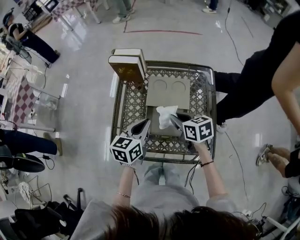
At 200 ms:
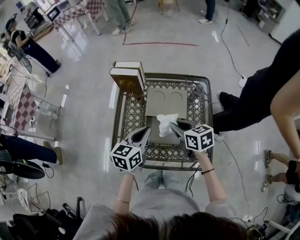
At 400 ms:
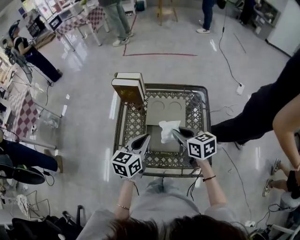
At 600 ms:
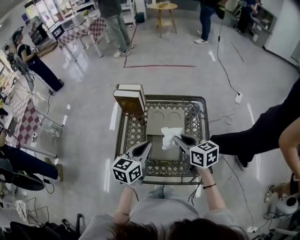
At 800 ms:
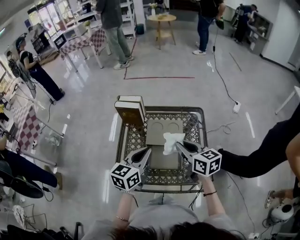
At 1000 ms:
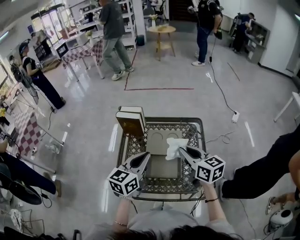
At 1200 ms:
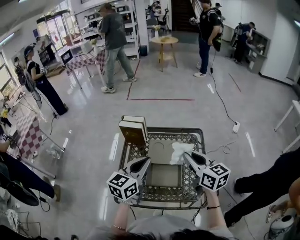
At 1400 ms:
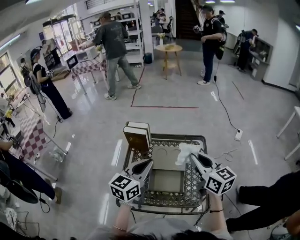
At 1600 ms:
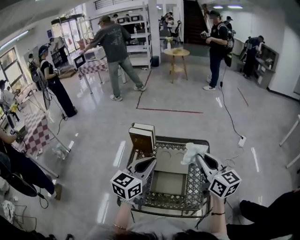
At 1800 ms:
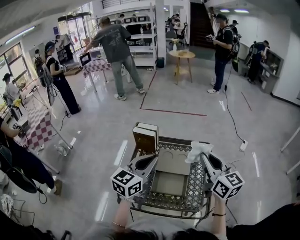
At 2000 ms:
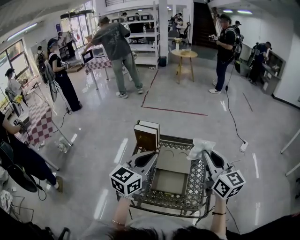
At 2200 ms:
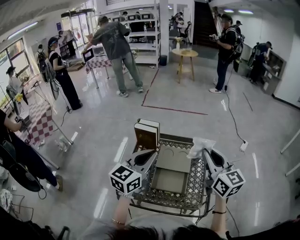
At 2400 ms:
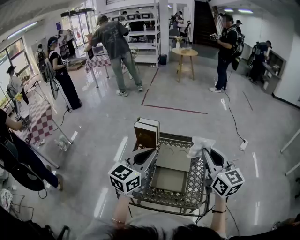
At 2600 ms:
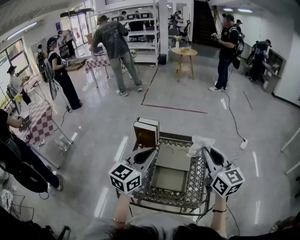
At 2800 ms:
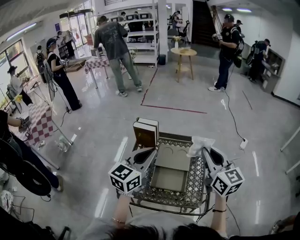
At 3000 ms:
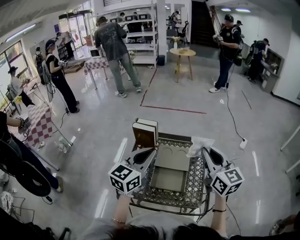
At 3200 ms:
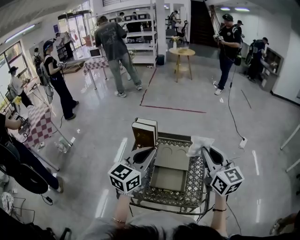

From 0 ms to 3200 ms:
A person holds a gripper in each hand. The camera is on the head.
From 0 ms to 1600 ms: The two grippers go approximately 25 cm upward. The right gripper angles its fingers upward, by some 30 degrees, while the left gripper turns by about 30 degrees.
From 1600 ms to 3200 ms: The grippers stay close to where they were, moving slightly.

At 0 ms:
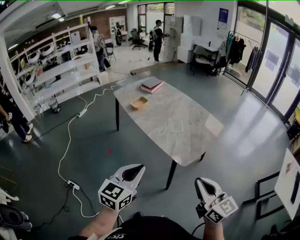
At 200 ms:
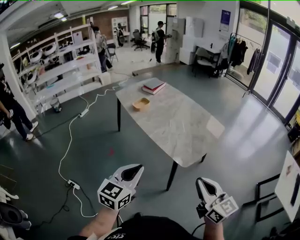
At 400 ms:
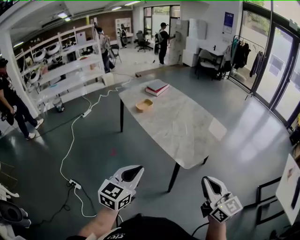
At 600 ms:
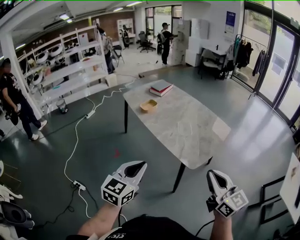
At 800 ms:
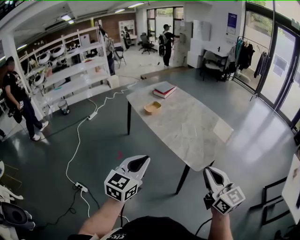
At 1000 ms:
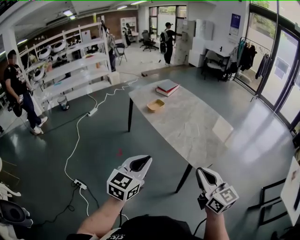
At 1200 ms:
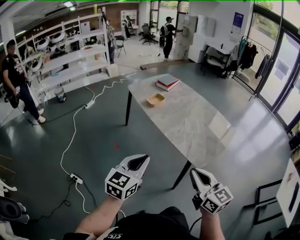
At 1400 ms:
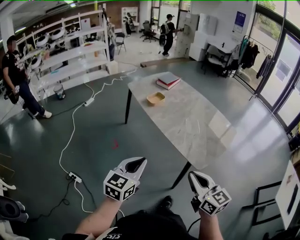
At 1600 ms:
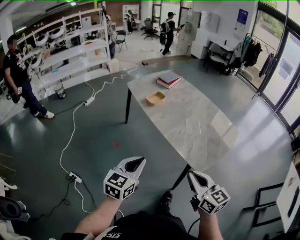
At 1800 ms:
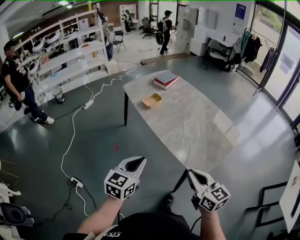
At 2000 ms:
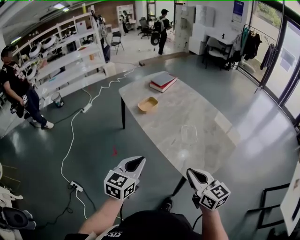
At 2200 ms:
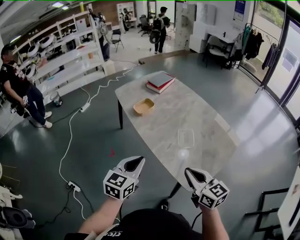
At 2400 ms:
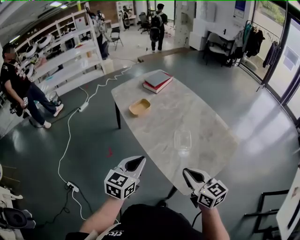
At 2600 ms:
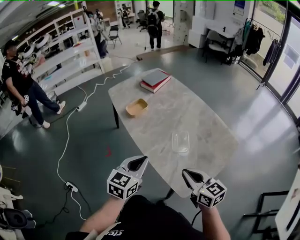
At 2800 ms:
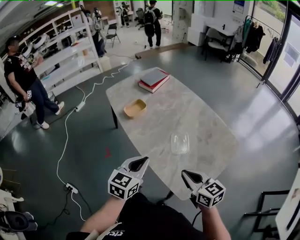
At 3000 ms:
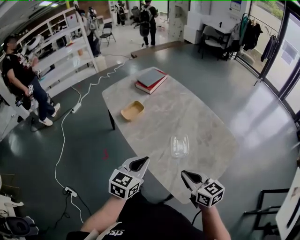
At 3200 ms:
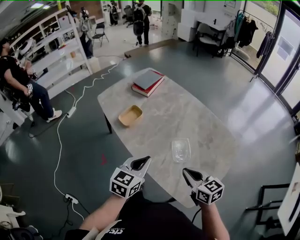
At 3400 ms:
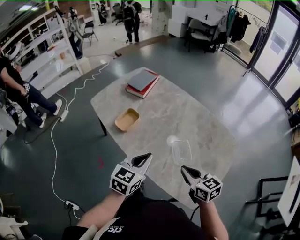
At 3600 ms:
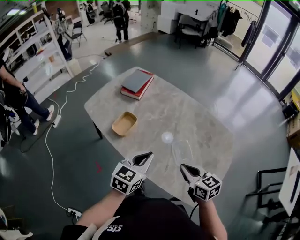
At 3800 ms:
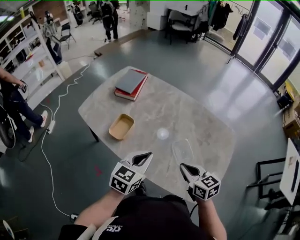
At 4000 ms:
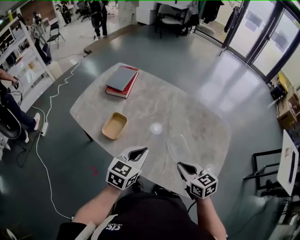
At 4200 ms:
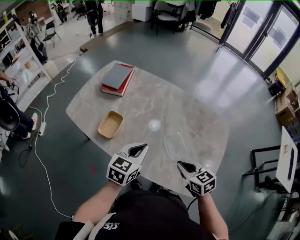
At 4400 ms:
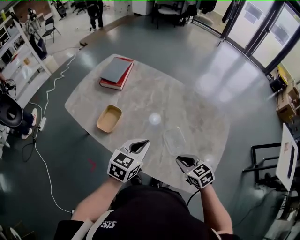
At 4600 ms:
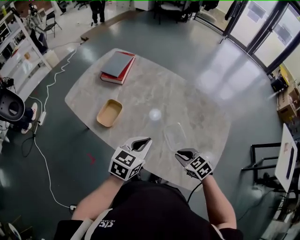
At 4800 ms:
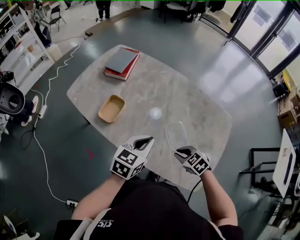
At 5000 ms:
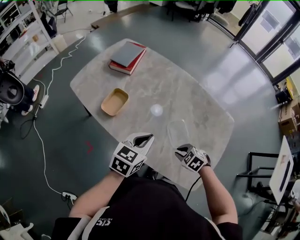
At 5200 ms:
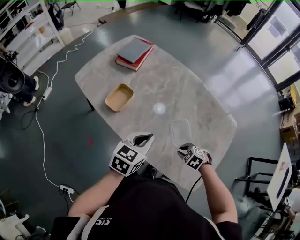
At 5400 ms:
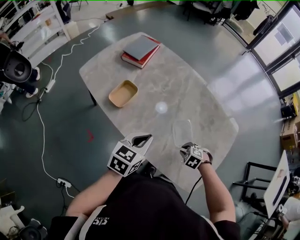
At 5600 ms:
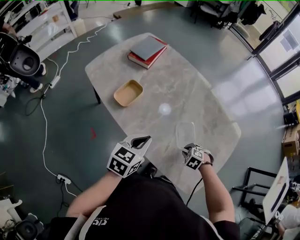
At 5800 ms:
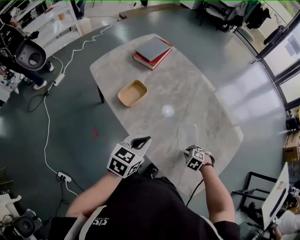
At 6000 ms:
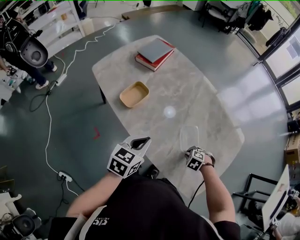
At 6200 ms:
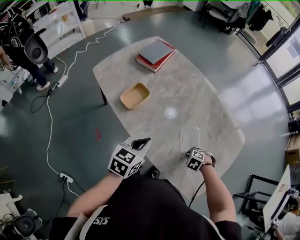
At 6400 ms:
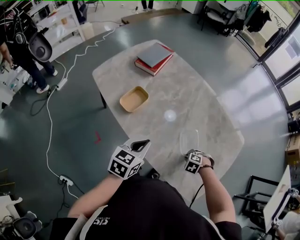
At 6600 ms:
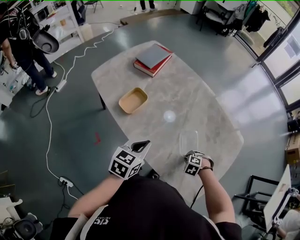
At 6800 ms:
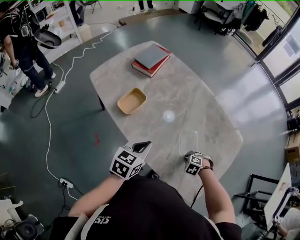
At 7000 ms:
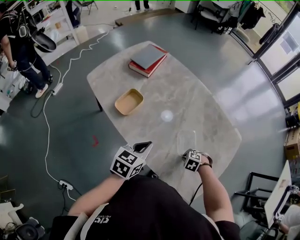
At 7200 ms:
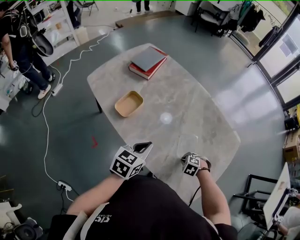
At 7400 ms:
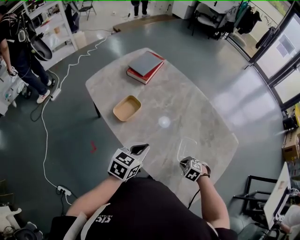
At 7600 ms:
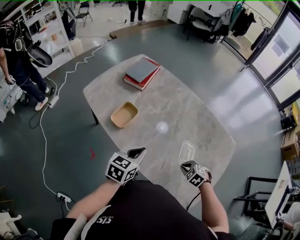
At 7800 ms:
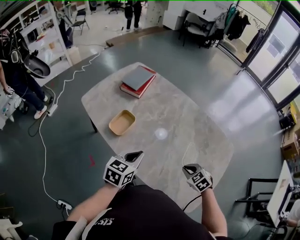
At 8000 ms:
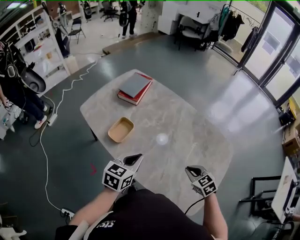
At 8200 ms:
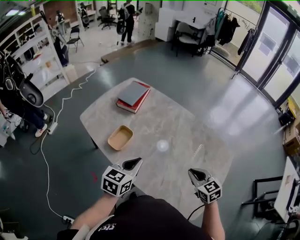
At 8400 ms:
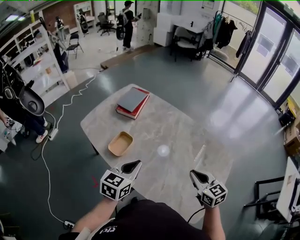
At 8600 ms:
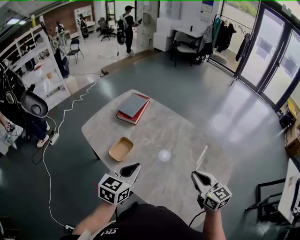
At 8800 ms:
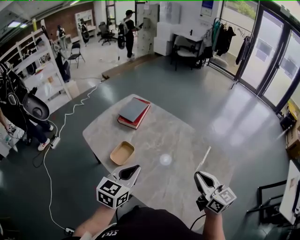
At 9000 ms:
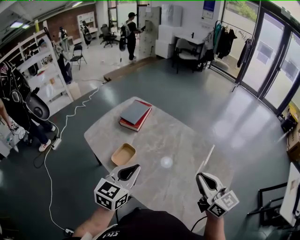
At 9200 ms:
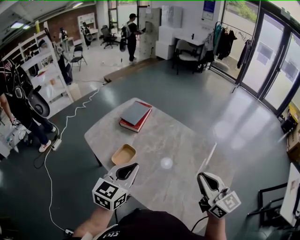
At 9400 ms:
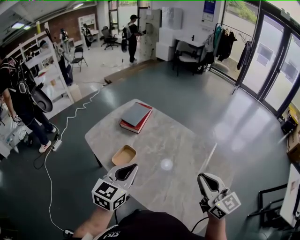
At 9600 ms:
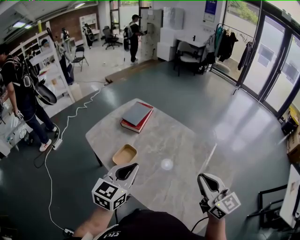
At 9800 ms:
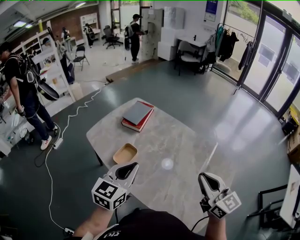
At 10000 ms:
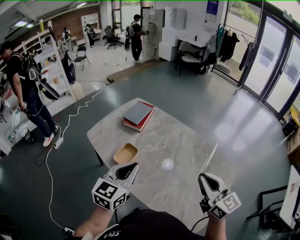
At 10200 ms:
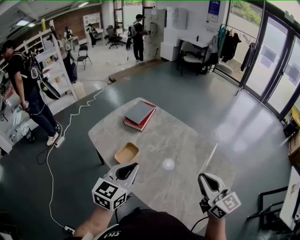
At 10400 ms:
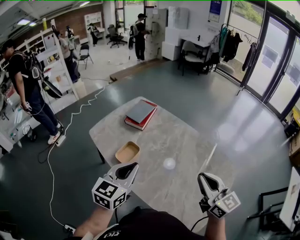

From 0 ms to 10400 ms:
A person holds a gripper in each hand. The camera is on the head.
From 0 ms to 1400 ms: The grippers both shift to the left, forward and downward by roughly 15 cm.
From 1400 ms to 3000 ms: Both grippers travel together forward and to the right, about 35 cm.
From 3000 ms to 4400 ms: The right gripper heads forward, downward and to the left, covering about 15 cm, and rotates some 30 degrees. Meanwhile the left gripper heads forward, covering some 15 cm, and changes its angle by some 30 degrees.
From 4400 ms to 6000 ms: The right gripper moves downward, about 20 cm, and tips its fingers downward by approximately 40 degrees; the left gripper changes place by about 10 cm.
From 6000 ms to 7400 ms: The grippers move only a little.
From 7400 ms to 9000 ms: The left gripper travels upward by about 15 cm, and changes its angle by some 20 degrees; the right gripper travels upward by roughly 40 cm, and points its fingers approximately 80 degrees further upward.
From 9000 ms to 10400 ms: The grippers stay close to where they were, moving slightly.

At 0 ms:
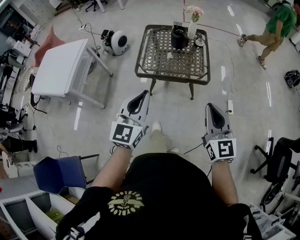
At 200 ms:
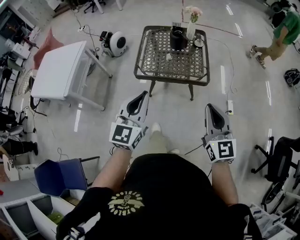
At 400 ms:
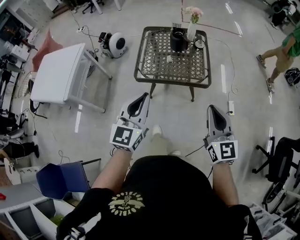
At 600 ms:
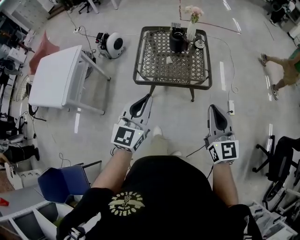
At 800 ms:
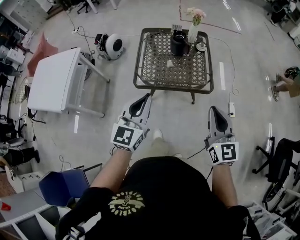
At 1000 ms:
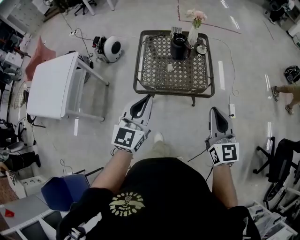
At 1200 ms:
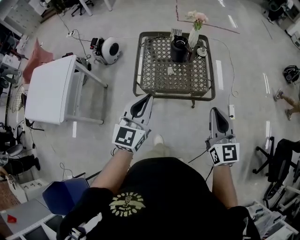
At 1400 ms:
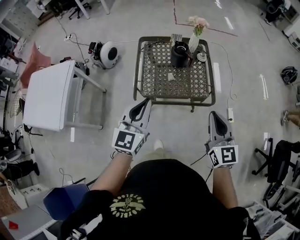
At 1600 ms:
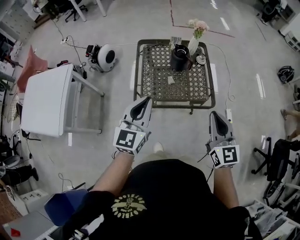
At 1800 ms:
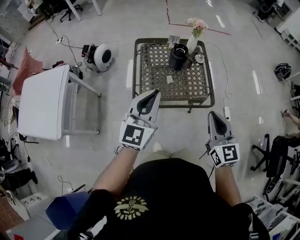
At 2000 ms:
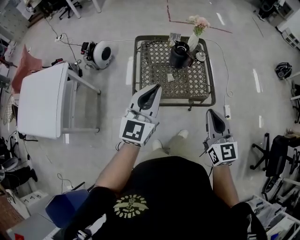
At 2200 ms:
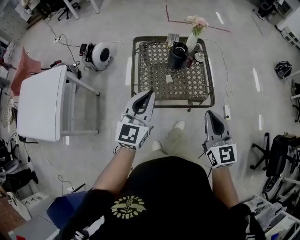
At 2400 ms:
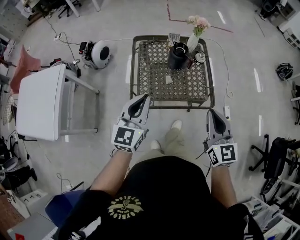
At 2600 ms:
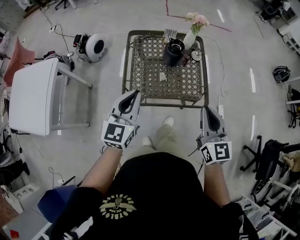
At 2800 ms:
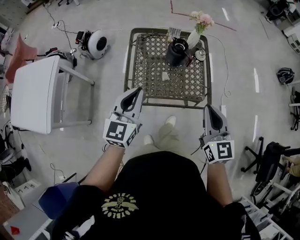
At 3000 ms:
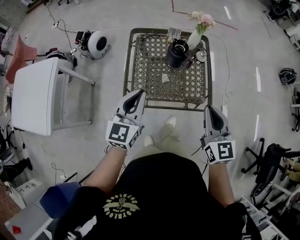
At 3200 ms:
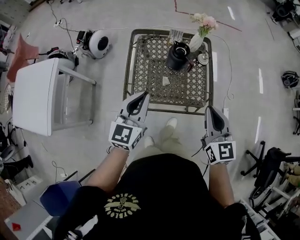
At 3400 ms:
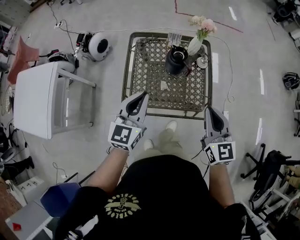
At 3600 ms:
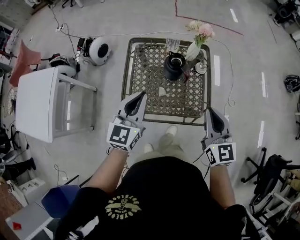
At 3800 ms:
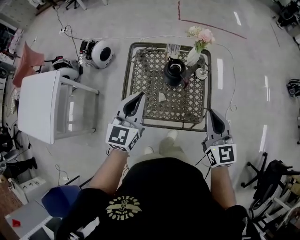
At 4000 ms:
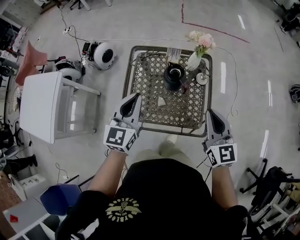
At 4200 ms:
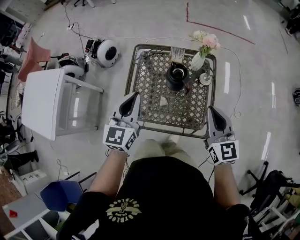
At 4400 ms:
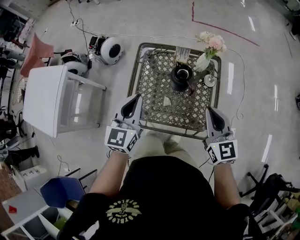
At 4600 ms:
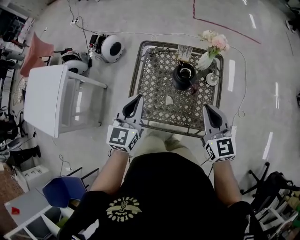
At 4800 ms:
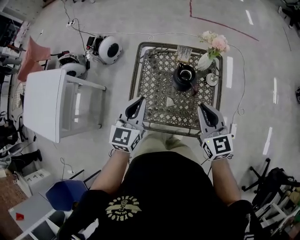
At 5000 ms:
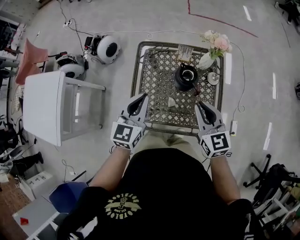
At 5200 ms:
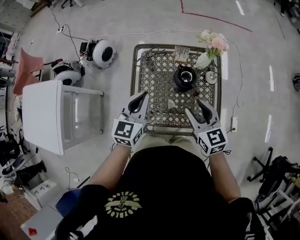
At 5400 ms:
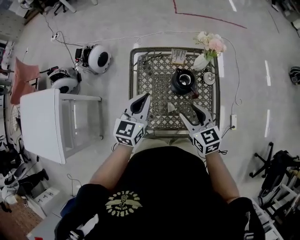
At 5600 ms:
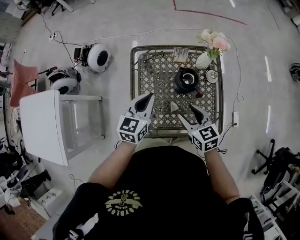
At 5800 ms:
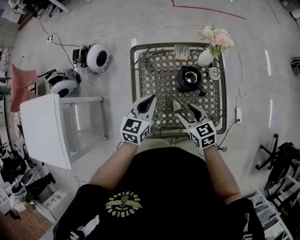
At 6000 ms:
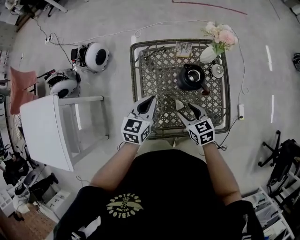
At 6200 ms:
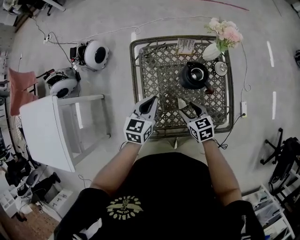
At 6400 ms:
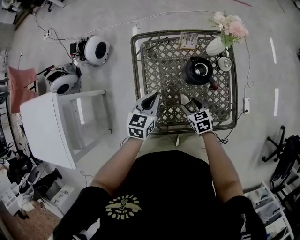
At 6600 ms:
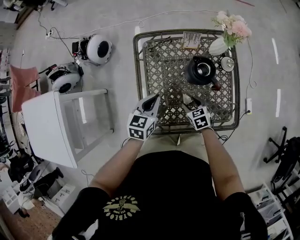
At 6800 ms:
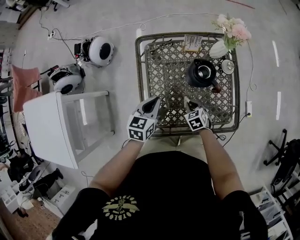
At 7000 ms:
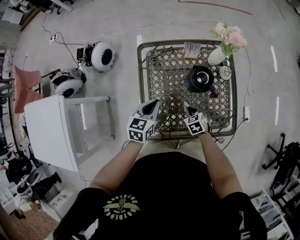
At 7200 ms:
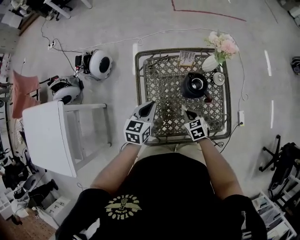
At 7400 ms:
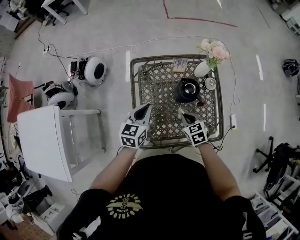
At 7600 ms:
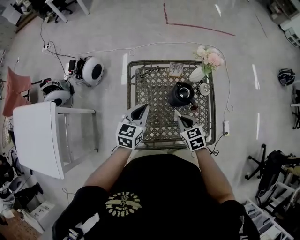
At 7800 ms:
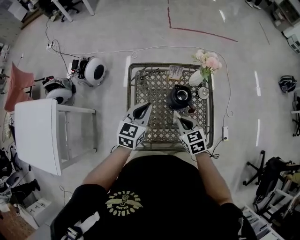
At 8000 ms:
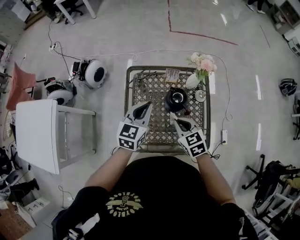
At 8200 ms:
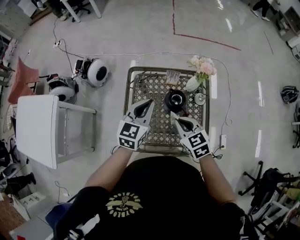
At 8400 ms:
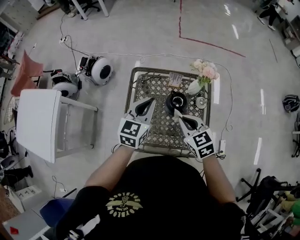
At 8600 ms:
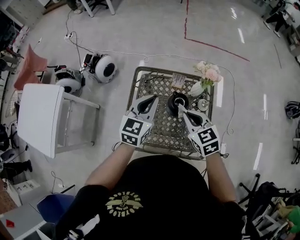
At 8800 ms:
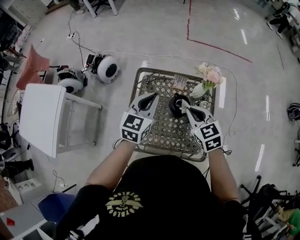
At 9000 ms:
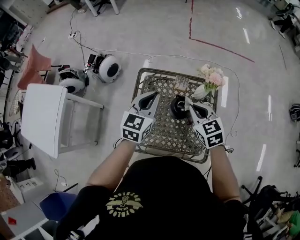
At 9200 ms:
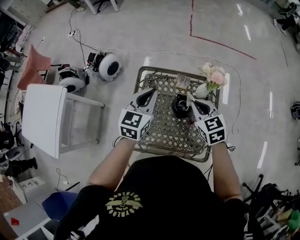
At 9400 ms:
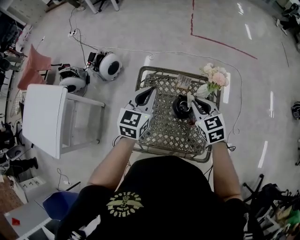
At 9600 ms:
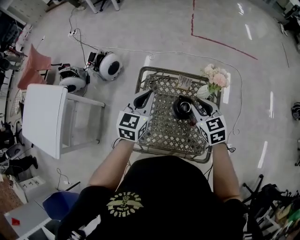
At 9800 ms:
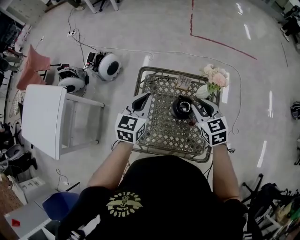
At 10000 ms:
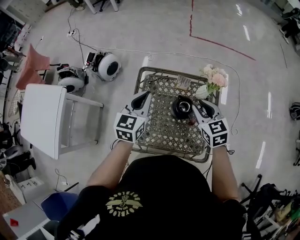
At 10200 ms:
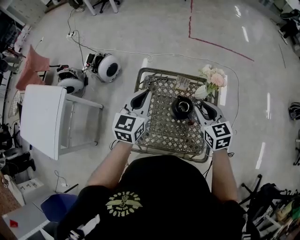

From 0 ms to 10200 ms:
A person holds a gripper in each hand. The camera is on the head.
From 0 ms to 1400 ms: The grippers both shift forward by approximately 20 cm.
From 1400 ms to 3000 ms: The left gripper is displaced forward and downward by some 15 cm. Meanwhile the right gripper moves forward, about 15 cm.
From 3000 ms to 4400 ms: Both grippers travel together forward, roughly 15 cm.
From 4400 ms to 5800 ms: The left gripper is displaced downward and forward by about 15 cm, and turns by approximately 30 degrees, while the right gripper heads downward and to the left, covering some 25 cm, turns by roughly 30 degrees, and opens up.
From 5800 ms to 7200 ms: The right gripper is displaced downward by roughly 15 cm, and closes. Meanwhile the left gripper goes about 5 cm downward.
From 7200 ms to 8800 ms: The left gripper moves upward and to the right, roughly 20 cm; the right gripper goes about 25 cm upward, and swivels some 30 degrees.
From 8800 ms to 10200 ms: The right gripper opens its fingers; the left gripper shifts by approximately 5 cm.
